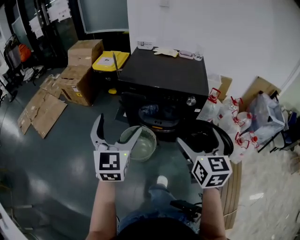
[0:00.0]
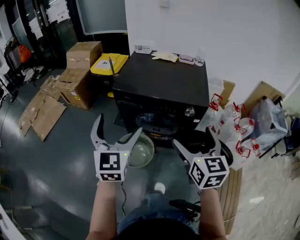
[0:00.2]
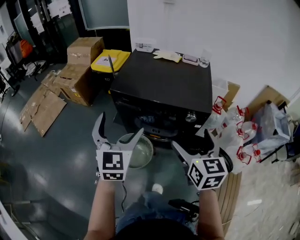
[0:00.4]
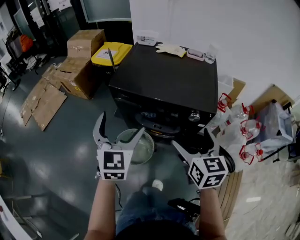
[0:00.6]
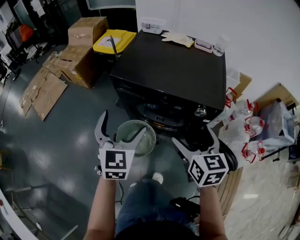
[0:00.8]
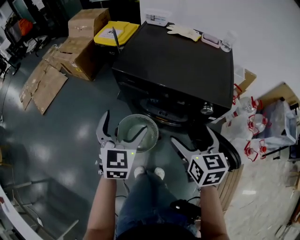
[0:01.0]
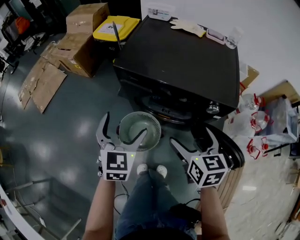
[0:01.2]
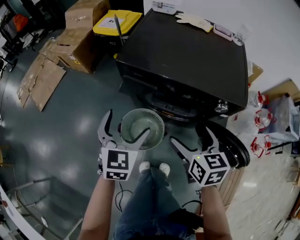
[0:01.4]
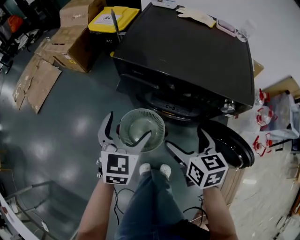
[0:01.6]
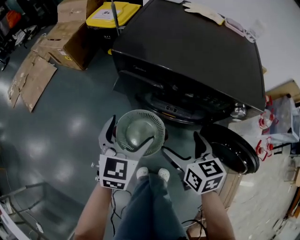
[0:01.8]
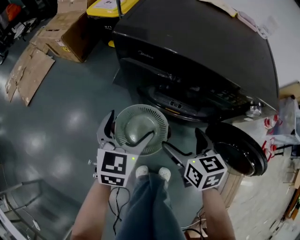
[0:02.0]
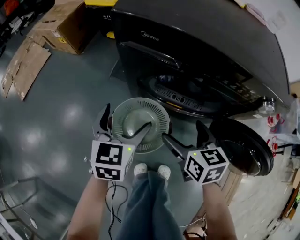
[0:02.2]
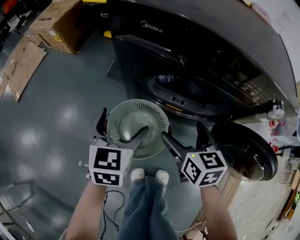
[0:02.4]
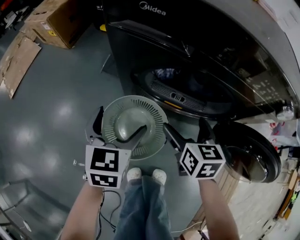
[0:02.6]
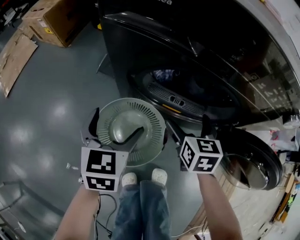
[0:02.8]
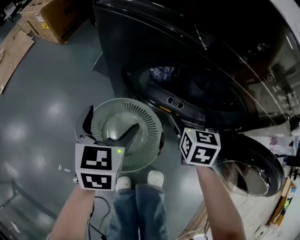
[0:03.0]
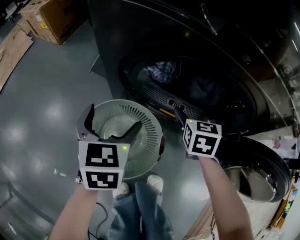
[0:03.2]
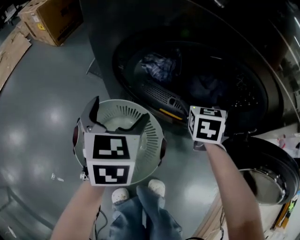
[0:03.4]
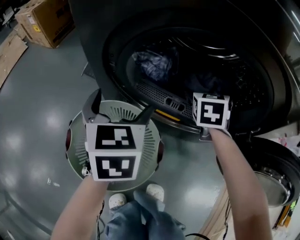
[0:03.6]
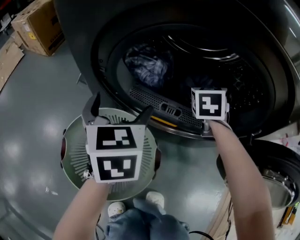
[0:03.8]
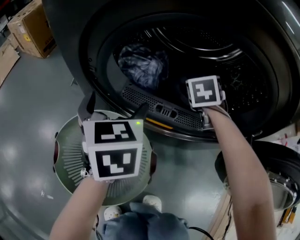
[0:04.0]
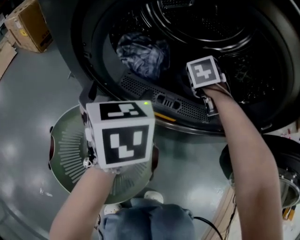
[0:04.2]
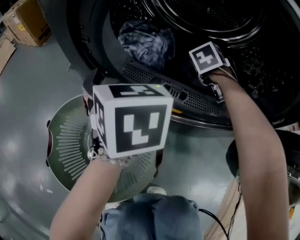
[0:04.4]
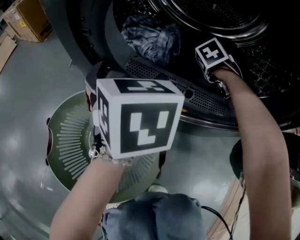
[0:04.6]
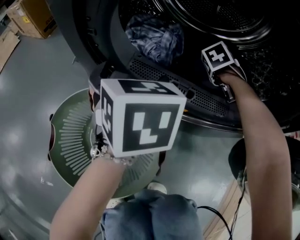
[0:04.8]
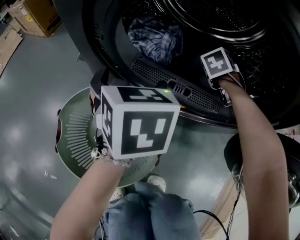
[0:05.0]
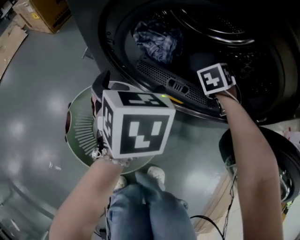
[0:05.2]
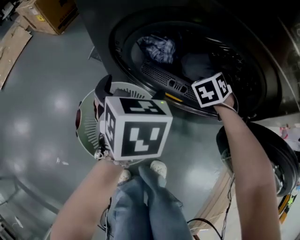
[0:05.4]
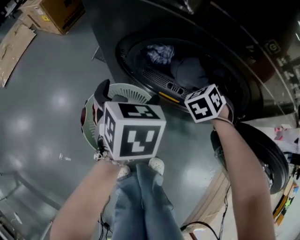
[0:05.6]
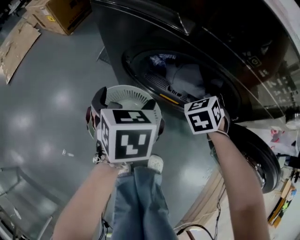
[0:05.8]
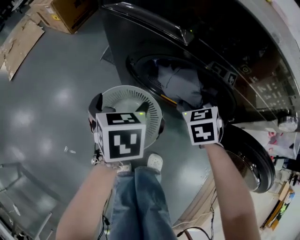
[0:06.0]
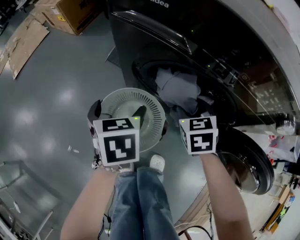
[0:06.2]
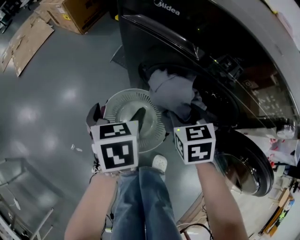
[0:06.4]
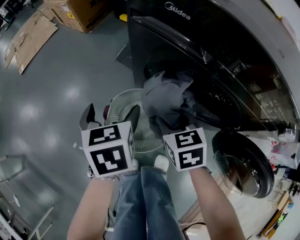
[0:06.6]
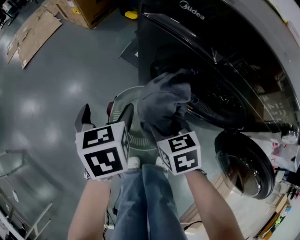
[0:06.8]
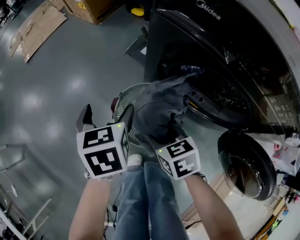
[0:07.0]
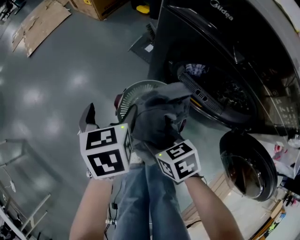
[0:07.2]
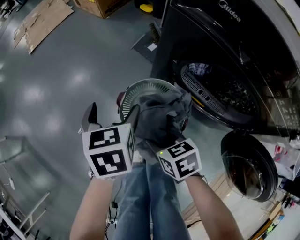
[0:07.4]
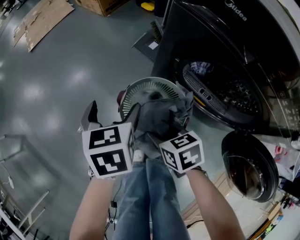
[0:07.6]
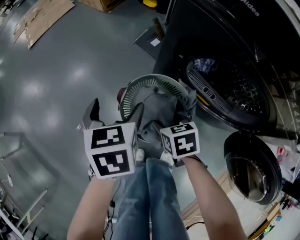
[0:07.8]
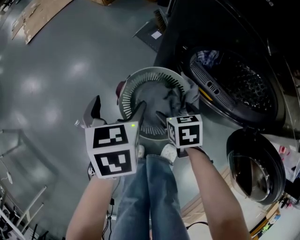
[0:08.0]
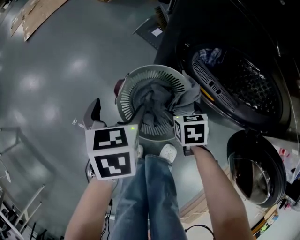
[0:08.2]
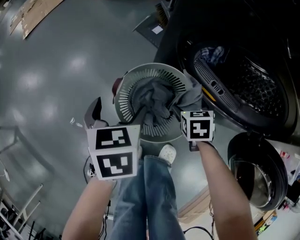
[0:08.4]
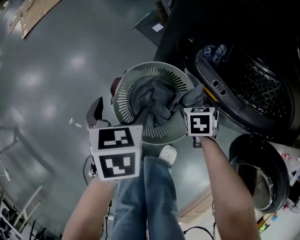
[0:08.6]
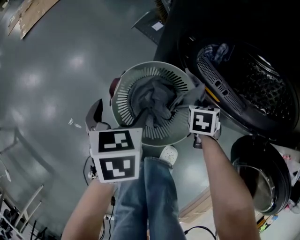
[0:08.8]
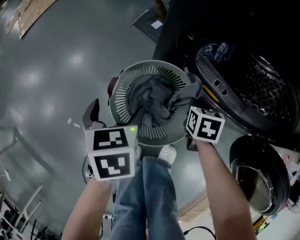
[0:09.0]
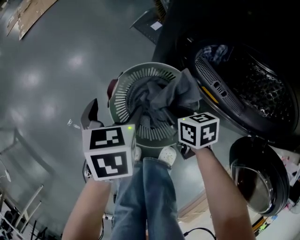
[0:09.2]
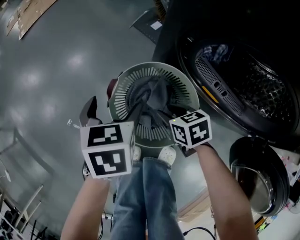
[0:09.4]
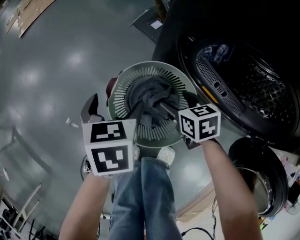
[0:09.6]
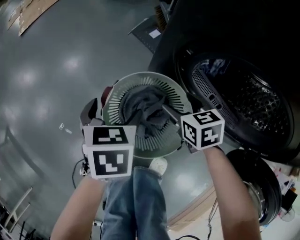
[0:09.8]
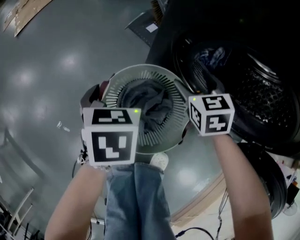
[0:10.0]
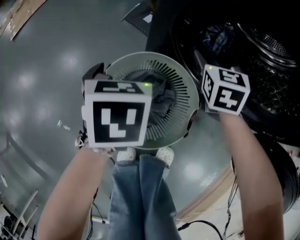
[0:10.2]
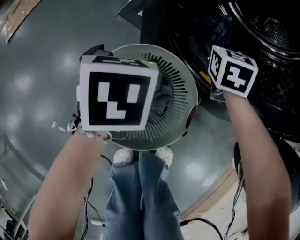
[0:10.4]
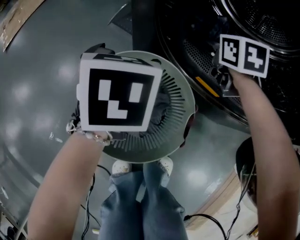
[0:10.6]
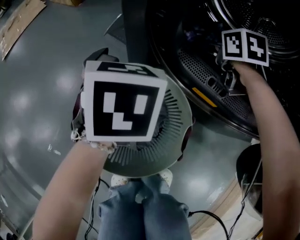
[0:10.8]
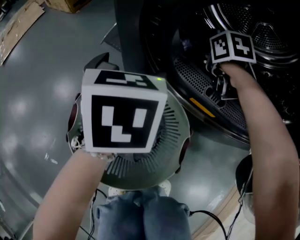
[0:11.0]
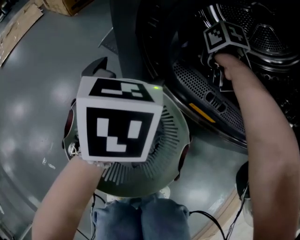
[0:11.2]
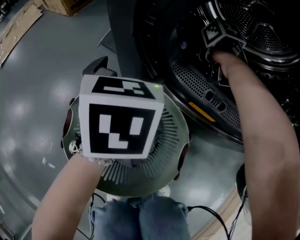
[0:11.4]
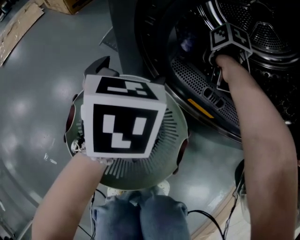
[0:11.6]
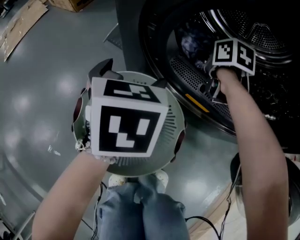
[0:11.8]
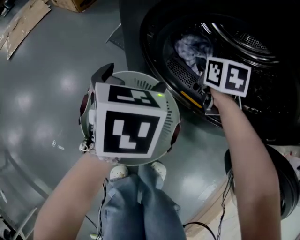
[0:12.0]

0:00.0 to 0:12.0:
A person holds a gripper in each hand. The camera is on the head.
0:00.0 to 0:01.6: Both grippers travel together downward and forward, approximately 30 cm. The right gripper rotates about 30 degrees, while the left gripper turns by approximately 20 degrees.
0:01.6 to 0:03.0: The right gripper travels downward and forward by some 40 cm, and turns by roughly 20 degrees; the left gripper heads downward, covering roughly 35 cm.
0:03.0 to 0:04.4: The right gripper heads forward and downward, covering about 30 cm, and turns by approximately 40 degrees. The left gripper moves forward, downward and to the right, approximately 20 cm.
0:04.4 to 0:06.0: The right gripper changes place by about 30 cm, rotates about 30 degrees, and closes its fingers; the left gripper travels upward by about 15 cm.
0:06.0 to 0:07.6: The right gripper ends up some 30 cm from where it was, and rotates approximately 40 degrees, while the left gripper shifts by roughly 15 cm.
0:07.6 to 0:09.0: The left gripper moves downward, approximately 15 cm; the right gripper ends up some 25 cm from where it was, turns by about 30 degrees, and opens, then closes again.
0:09.0 to 0:10.4: The left gripper shifts by roughly 15 cm; the right gripper ends up some 20 cm from where it was, changes its angle by some 30 degrees, and opens its fingers.
0:10.4 to 0:12.0: The left gripper is displaced to the right by about 5 cm; the right gripper goes downward and returns, about 10 cm each way, swivels approximately 20 degrees, and closes.

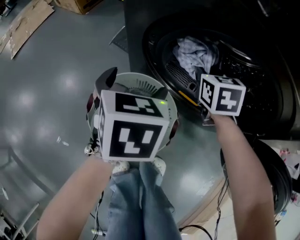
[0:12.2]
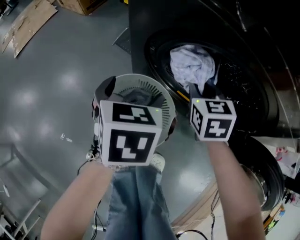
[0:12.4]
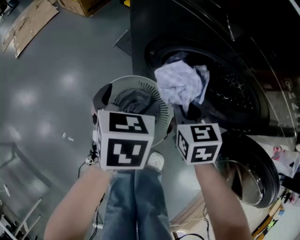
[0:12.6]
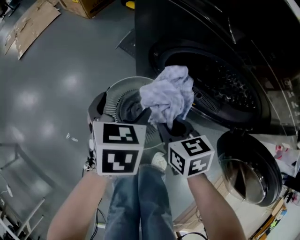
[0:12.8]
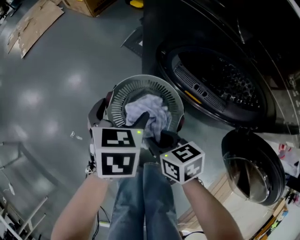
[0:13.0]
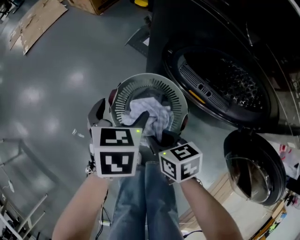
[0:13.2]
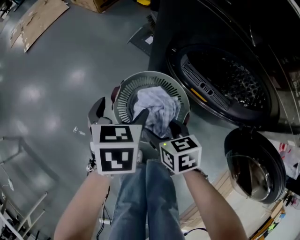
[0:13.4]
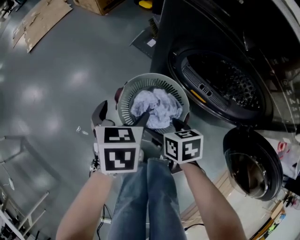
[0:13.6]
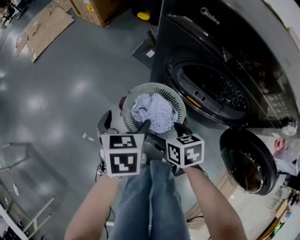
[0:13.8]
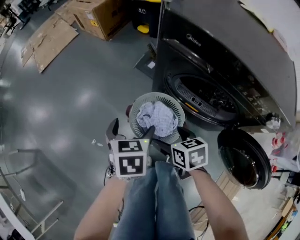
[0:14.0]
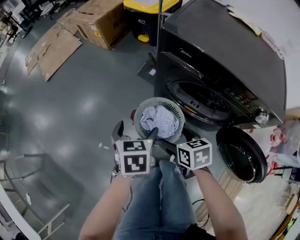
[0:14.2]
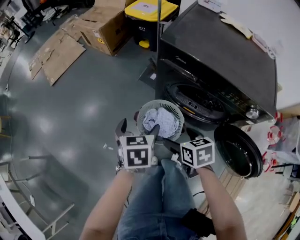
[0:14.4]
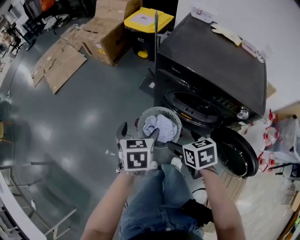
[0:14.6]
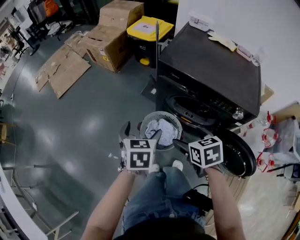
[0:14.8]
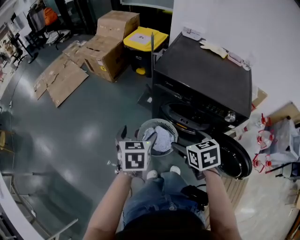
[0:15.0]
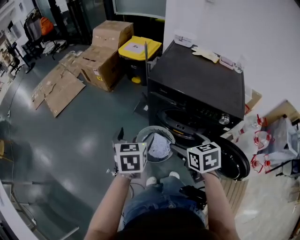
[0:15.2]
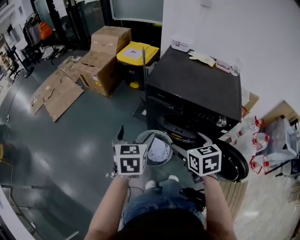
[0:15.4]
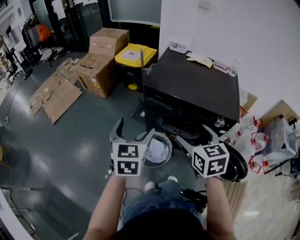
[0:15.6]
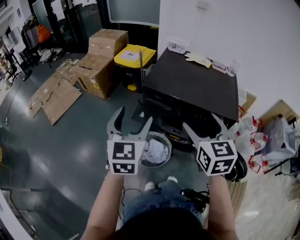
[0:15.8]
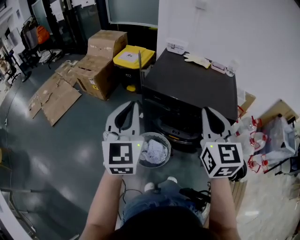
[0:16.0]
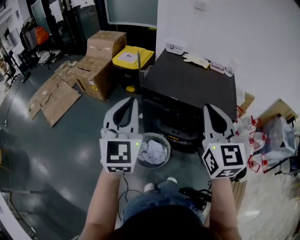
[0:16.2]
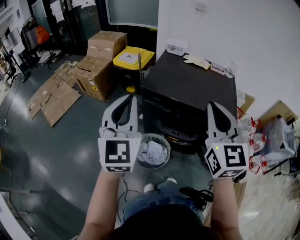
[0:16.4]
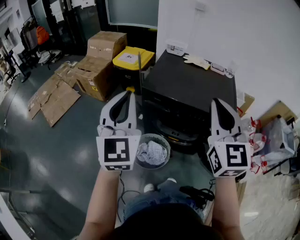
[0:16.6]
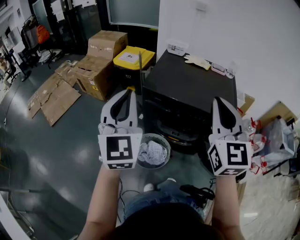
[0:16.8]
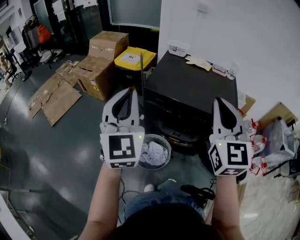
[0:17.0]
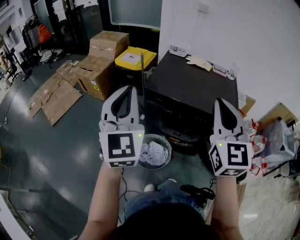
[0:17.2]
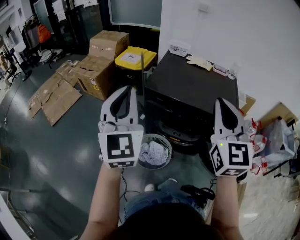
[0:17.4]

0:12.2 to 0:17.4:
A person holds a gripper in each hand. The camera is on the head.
0:12.2 to 0:14.0: The right gripper goes up and down, roughly 15 cm each way, reversing 2 times, swivels approximately 30 degrees, and opens up. The left gripper shifts by roughly 25 cm.
0:14.0 to 0:15.6: Both grippers travel together upward, some 35 cm. The left gripper changes its angle by about 30 degrees; the right gripper turns by about 40 degrees.
0:15.6 to 0:17.4: Both grippers travel together upward, approximately 20 cm. The right gripper angles its fingers upward, by about 30 degrees, and closes its fingers. Meanwhile the left gripper tips its fingers upward by roughly 30 degrees, and closes up.

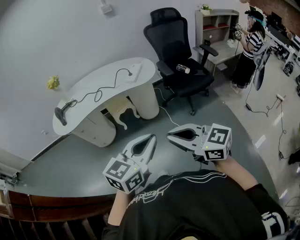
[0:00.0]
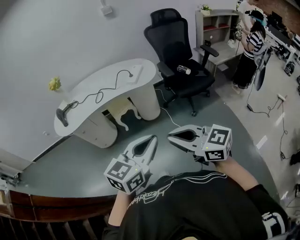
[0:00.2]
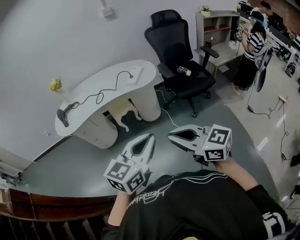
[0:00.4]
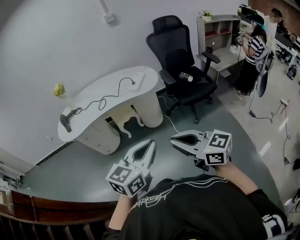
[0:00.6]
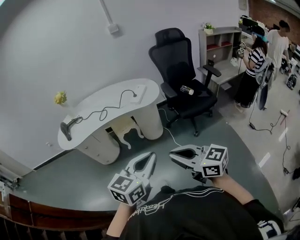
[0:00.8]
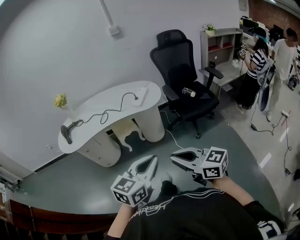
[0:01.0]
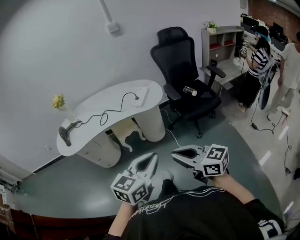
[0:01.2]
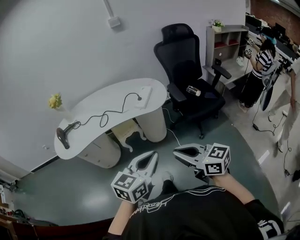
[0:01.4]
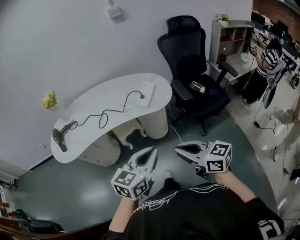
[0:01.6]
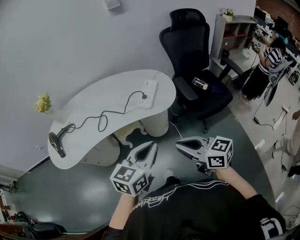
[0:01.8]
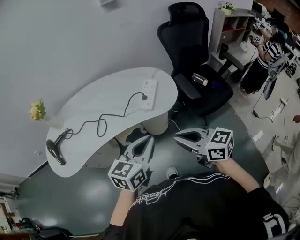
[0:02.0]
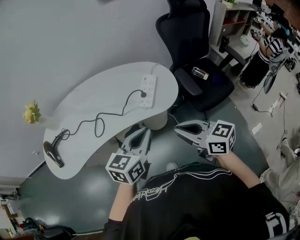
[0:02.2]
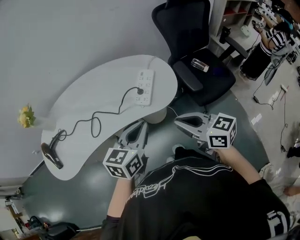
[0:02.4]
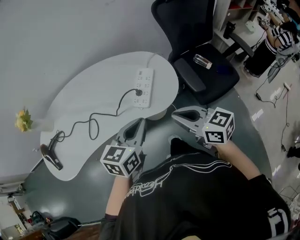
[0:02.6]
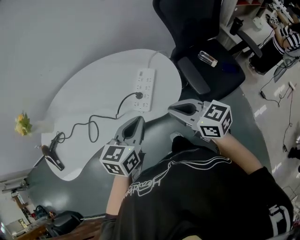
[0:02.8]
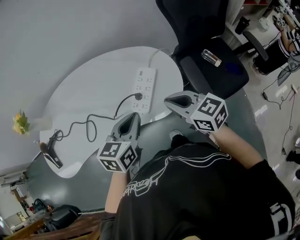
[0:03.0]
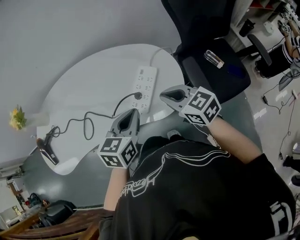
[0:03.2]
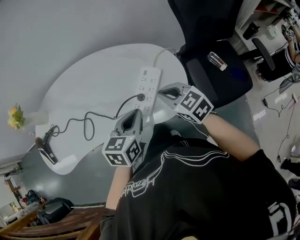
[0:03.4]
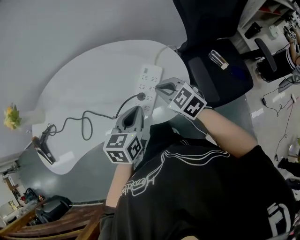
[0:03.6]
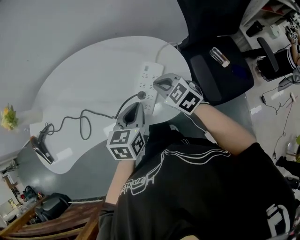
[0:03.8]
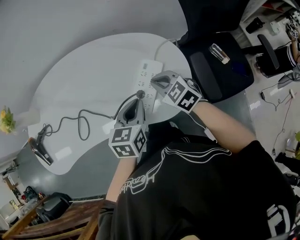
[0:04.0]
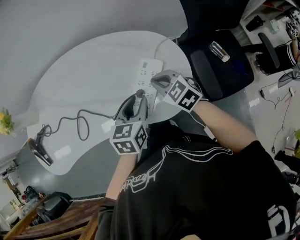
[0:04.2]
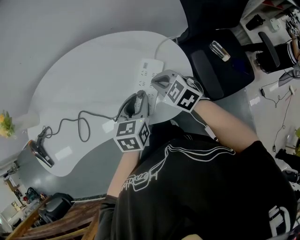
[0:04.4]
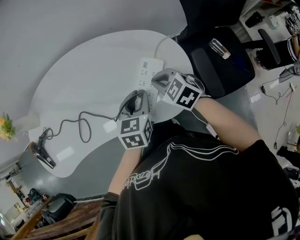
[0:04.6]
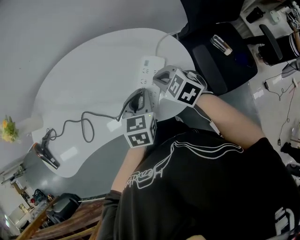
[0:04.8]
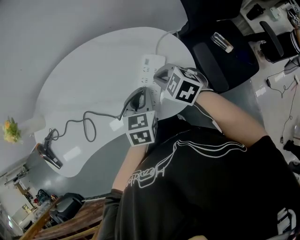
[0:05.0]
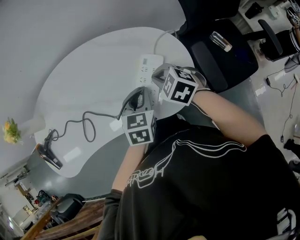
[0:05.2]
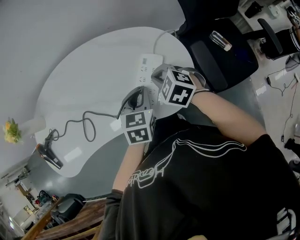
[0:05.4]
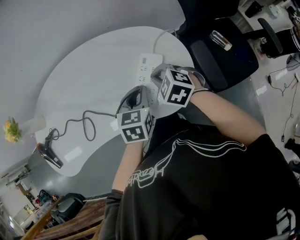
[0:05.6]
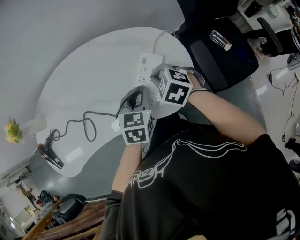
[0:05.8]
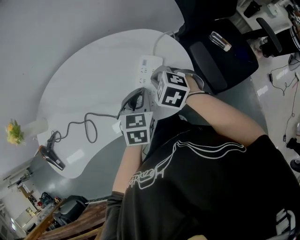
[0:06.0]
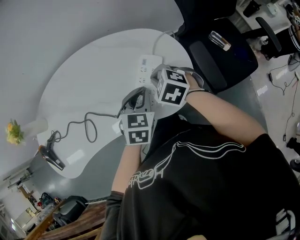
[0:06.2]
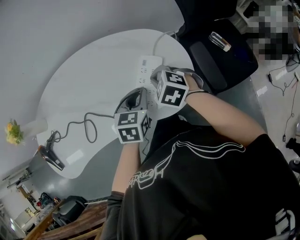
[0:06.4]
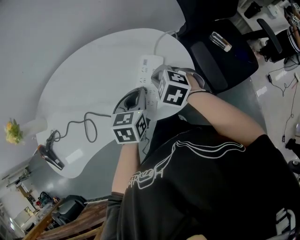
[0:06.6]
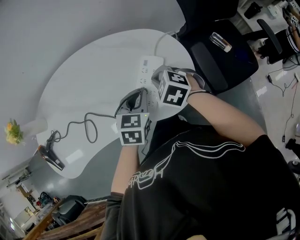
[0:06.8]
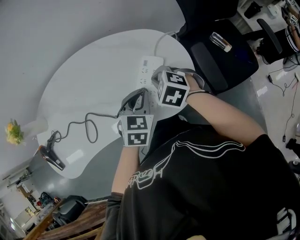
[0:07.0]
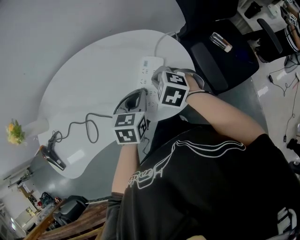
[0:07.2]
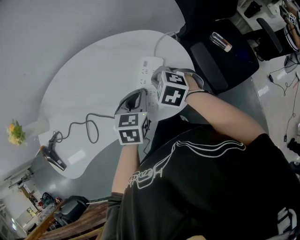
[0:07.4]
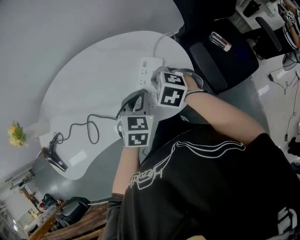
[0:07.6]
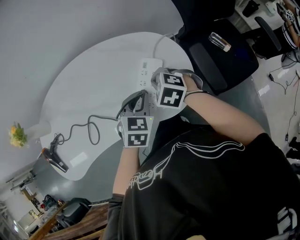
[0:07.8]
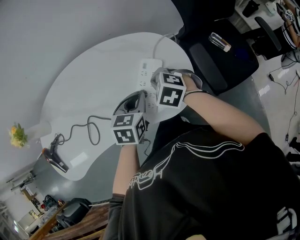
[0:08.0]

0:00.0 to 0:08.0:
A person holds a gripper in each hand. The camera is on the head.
0:00.0 to 0:01.6: The two grippers go some 25 cm forward.
0:01.6 to 0:03.2: The two grippers travel together, forward, about 40 cm. The right gripper turns by some 20 degrees. The left gripper swivels roughly 20 degrees.
0:03.2 to 0:04.8: Both grippers move downward and forward, roughly 15 cm. The right gripper swivels roughly 20 degrees.
0:04.8 to 0:06.4: The grippers make only small movements.
